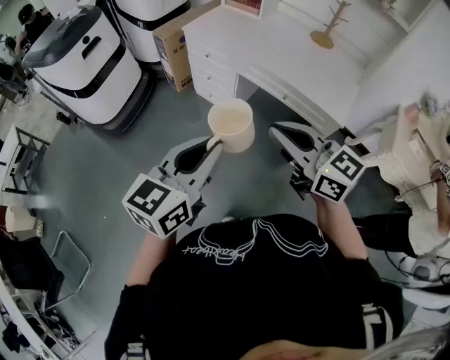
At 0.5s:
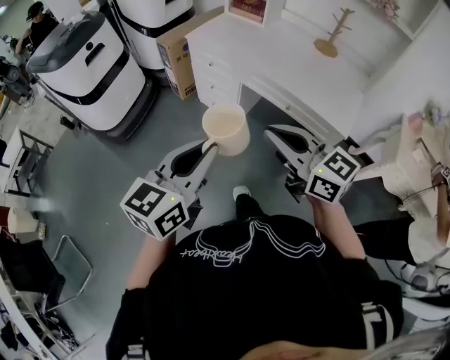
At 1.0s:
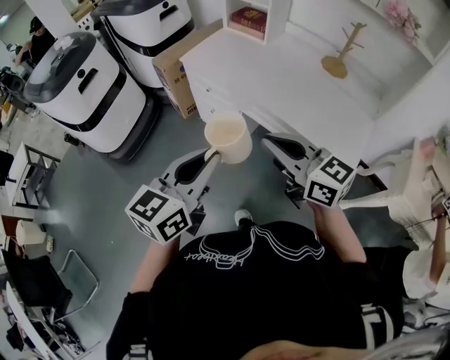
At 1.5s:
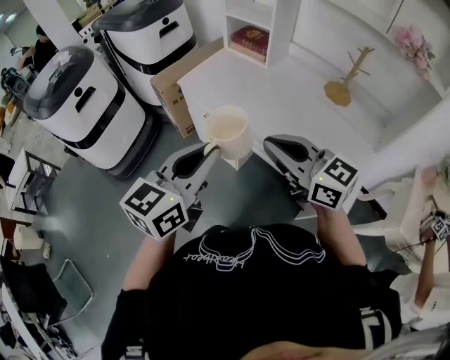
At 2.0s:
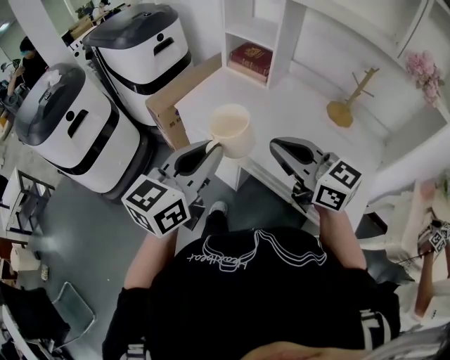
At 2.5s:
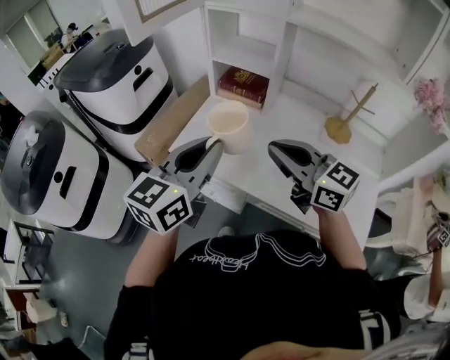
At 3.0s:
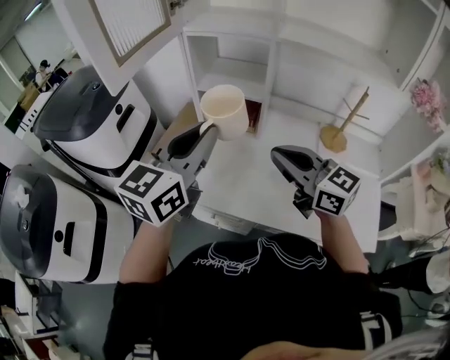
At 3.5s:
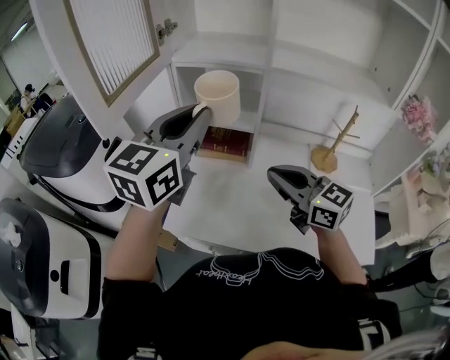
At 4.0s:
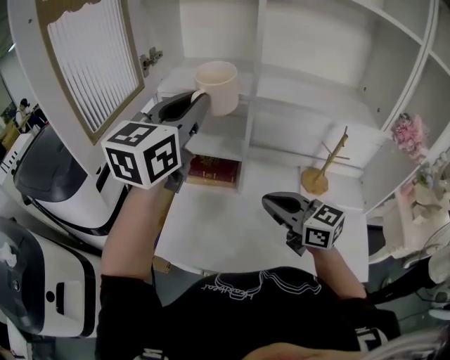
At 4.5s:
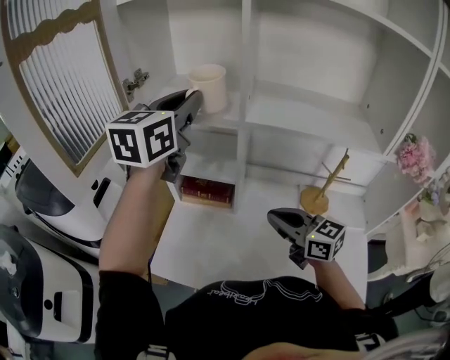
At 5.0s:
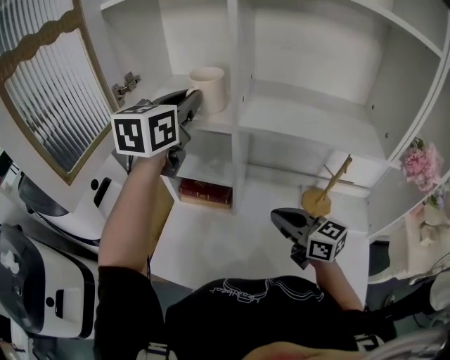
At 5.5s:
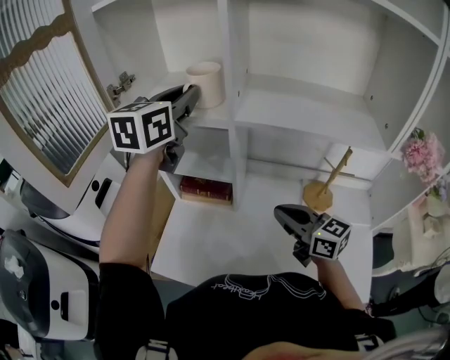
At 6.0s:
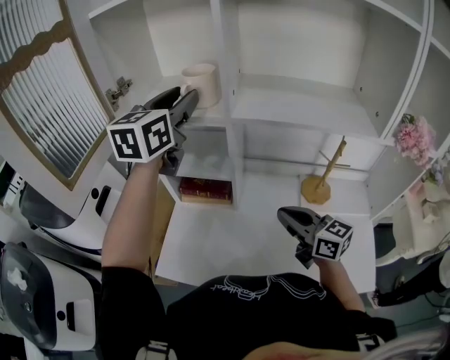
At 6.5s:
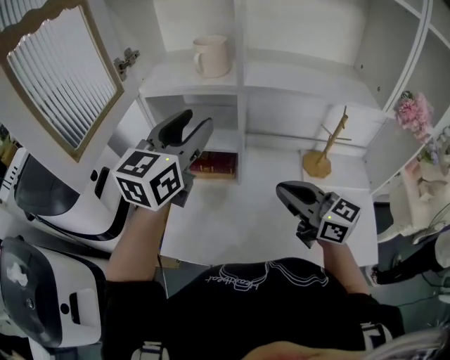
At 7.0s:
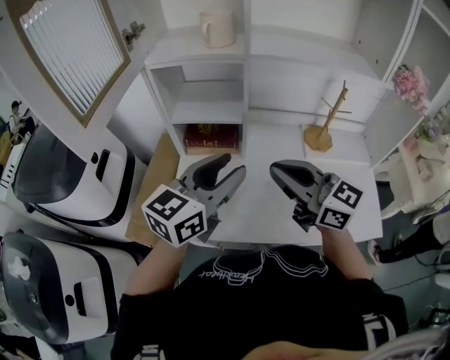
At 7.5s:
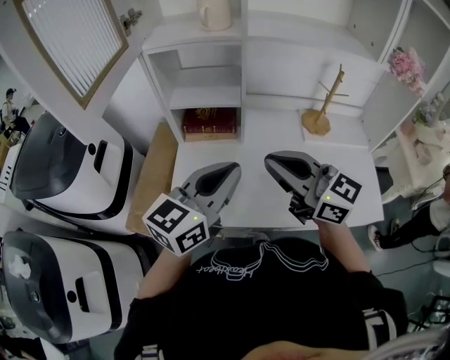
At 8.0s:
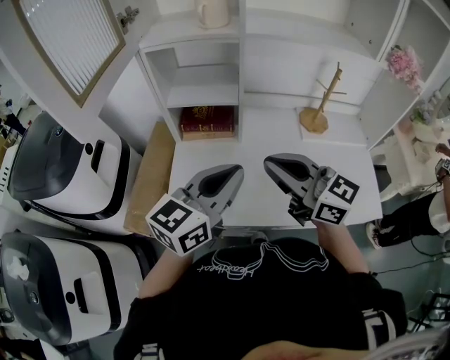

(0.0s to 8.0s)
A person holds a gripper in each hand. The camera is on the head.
0.0s - 2.0s: Both grippers travel together forward, approximately 40 cm.
2.0s - 4.0s: The right gripper shifts some 30 cm forward, and swivels roughly 30 degrees. Meanwhile the left gripper shifts approximately 50 cm forward and upward, and changes its angle by roughly 20 degrees.
4.0s - 6.0s: The left gripper is displaced forward and to the right by about 15 cm, and opens. Meanwhile the right gripper travels to the right by some 10 cm.
6.0s - 8.0s: The right gripper goes about 20 cm to the left and backward. Meanwhile the left gripper moves backward and downward, about 35 cm, swivels roughly 30 degrees, and closes up.

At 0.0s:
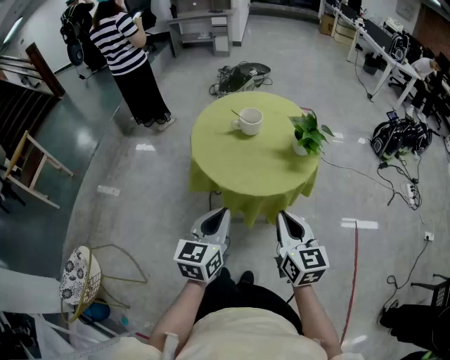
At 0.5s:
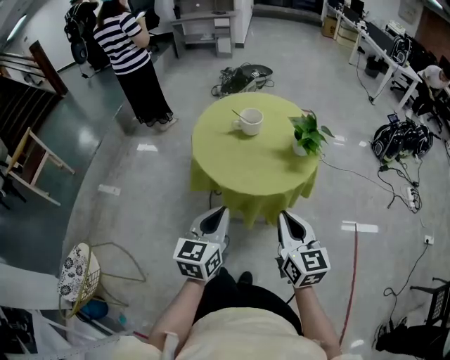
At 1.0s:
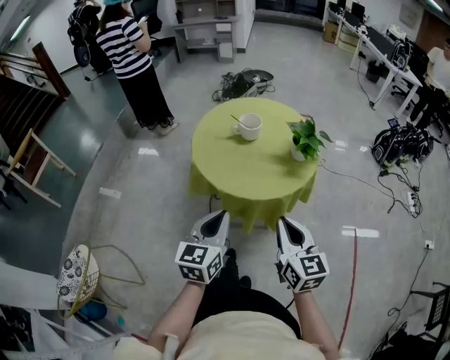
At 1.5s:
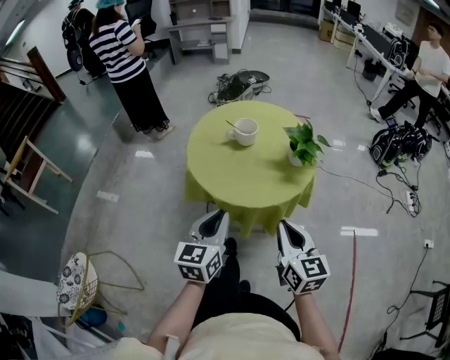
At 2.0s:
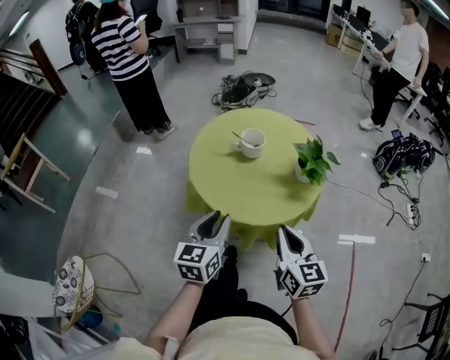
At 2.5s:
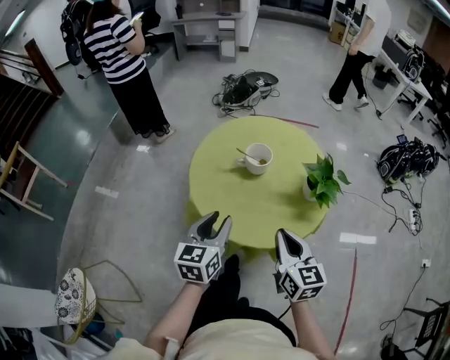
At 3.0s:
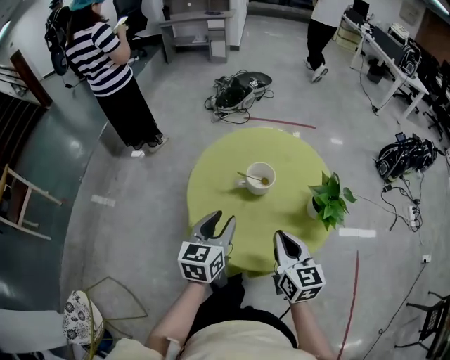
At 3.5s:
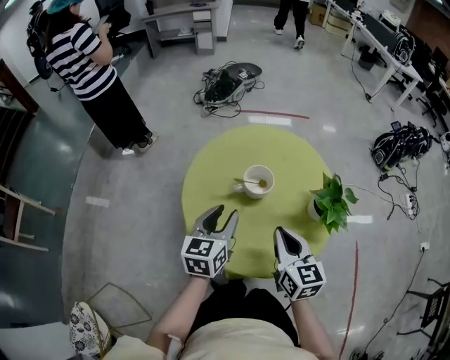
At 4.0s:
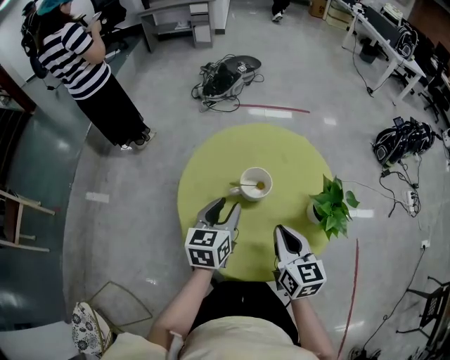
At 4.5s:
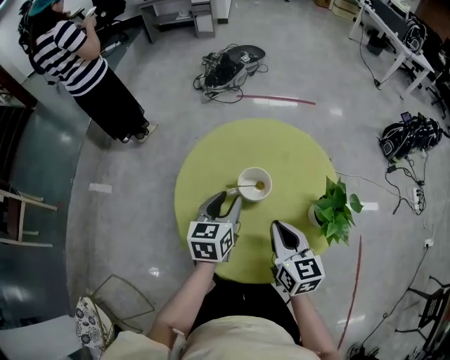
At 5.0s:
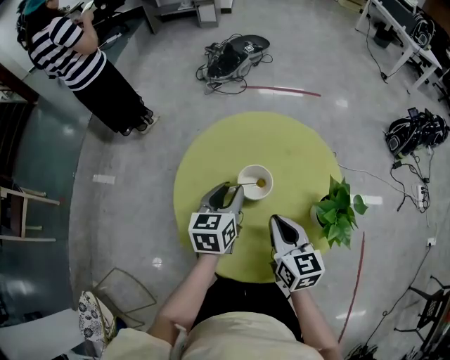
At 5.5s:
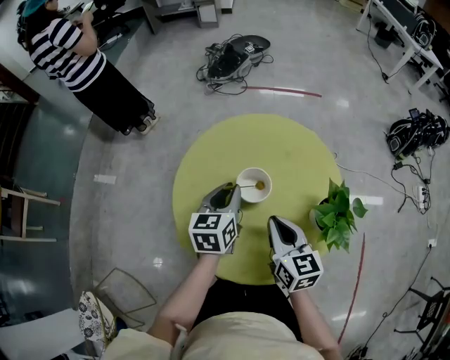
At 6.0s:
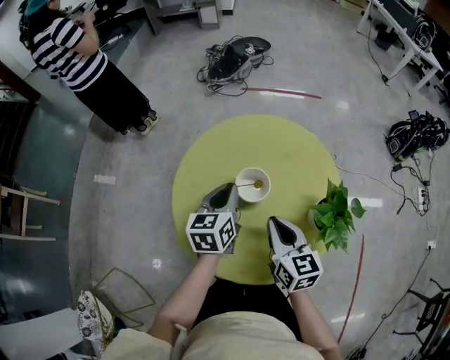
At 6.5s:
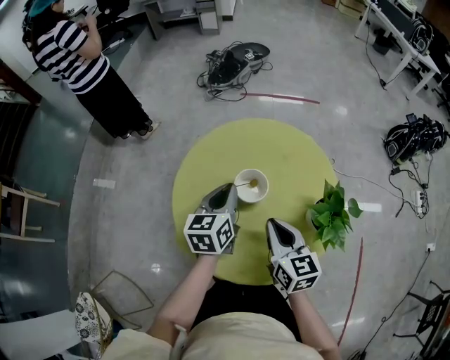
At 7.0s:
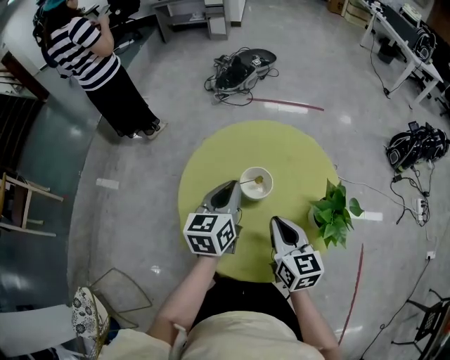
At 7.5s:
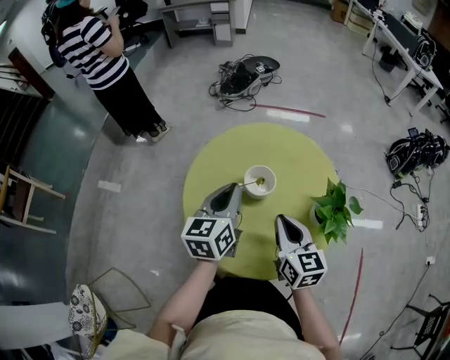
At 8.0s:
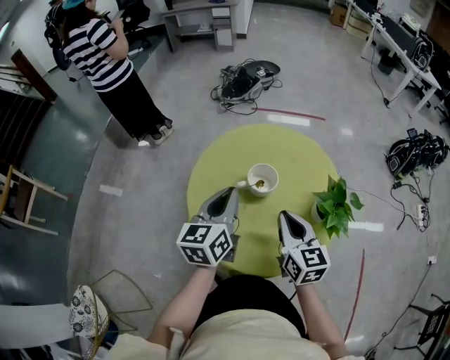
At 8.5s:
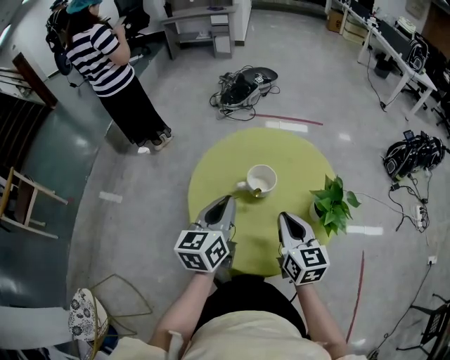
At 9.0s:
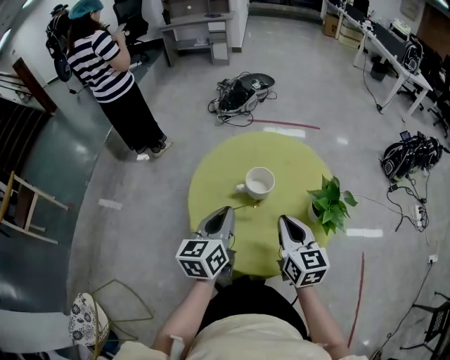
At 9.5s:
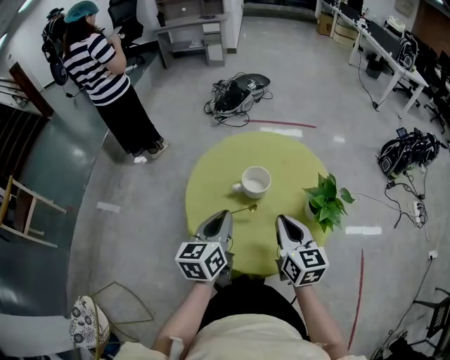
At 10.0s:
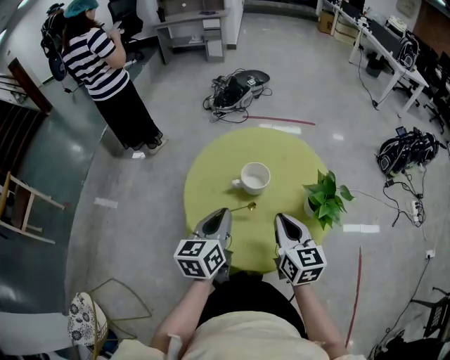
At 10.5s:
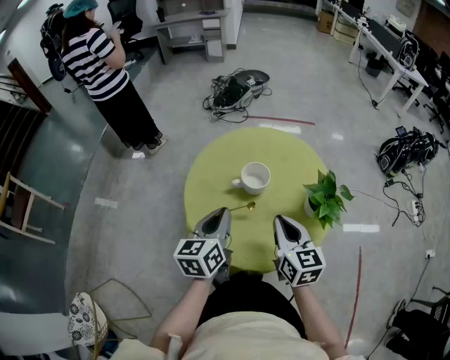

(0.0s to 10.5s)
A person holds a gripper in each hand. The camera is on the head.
0.0s - 2.0s: Both grippers travel together forward, some 10 cm. The left gripper opens its fingers.
2.0s - 4.0s: The grippers both shift forward by about 25 cm.
4.0s - 6.5s: The left gripper heads forward, covering roughly 5 cm, and closes up.
6.5s - 8.5s: The left gripper moves backward and upward, some 15 cm, while the right gripper shifts by about 5 cm.
8.5s - 10.5s: The left gripper changes place by about 5 cm.

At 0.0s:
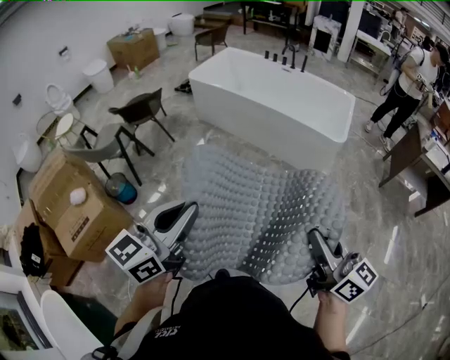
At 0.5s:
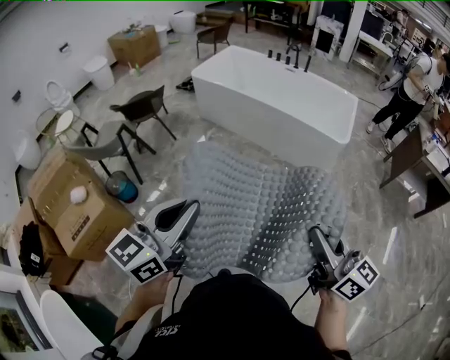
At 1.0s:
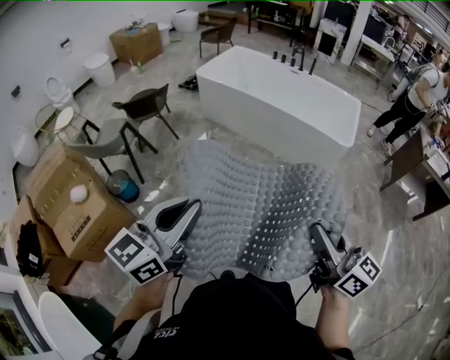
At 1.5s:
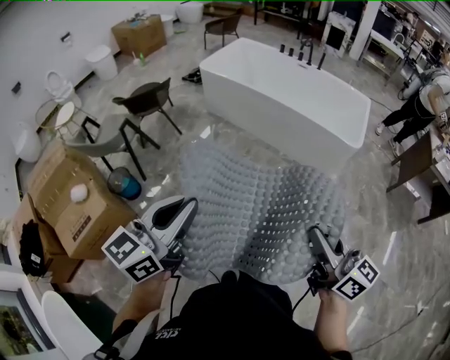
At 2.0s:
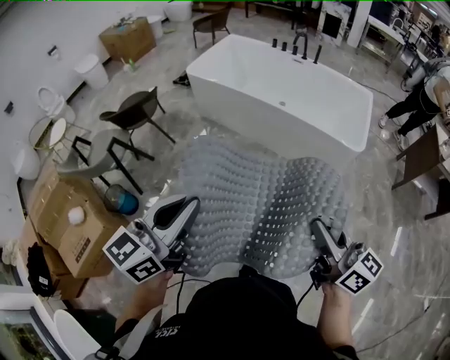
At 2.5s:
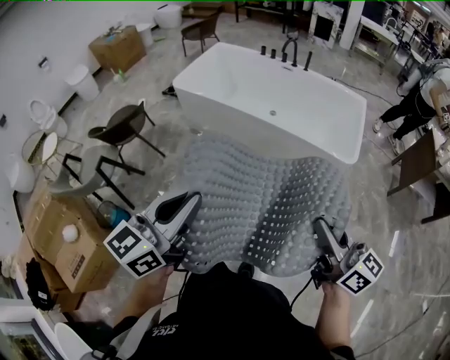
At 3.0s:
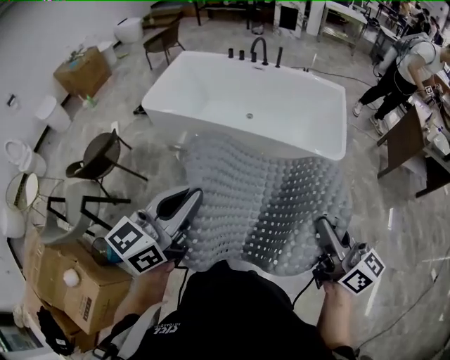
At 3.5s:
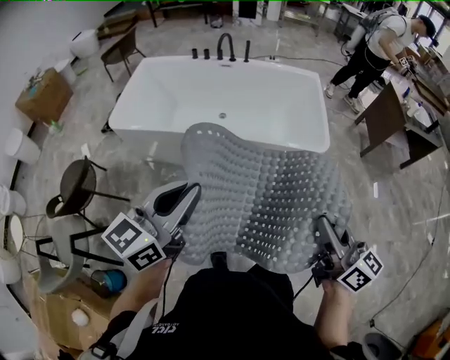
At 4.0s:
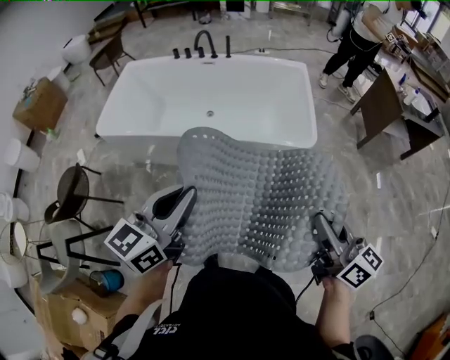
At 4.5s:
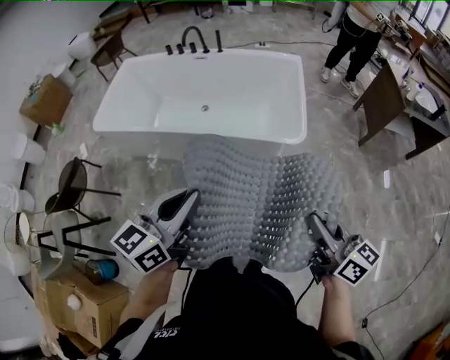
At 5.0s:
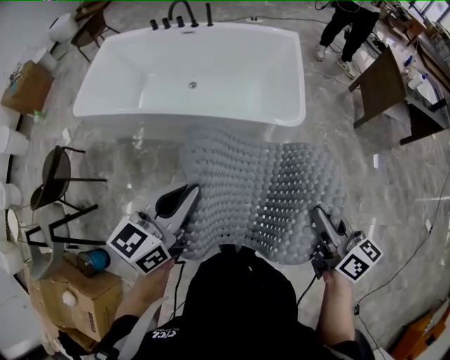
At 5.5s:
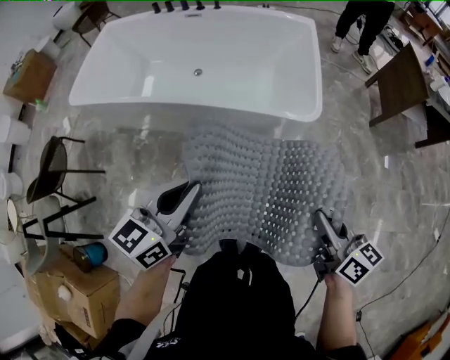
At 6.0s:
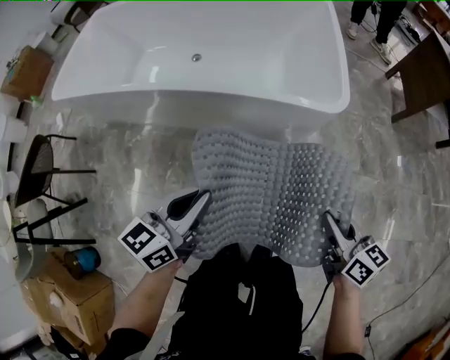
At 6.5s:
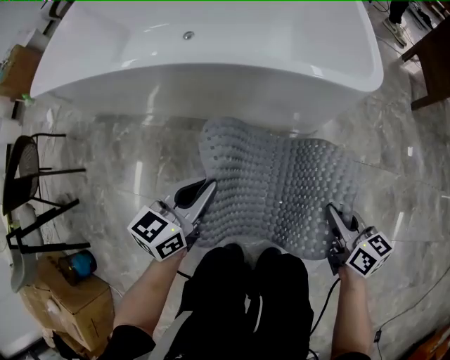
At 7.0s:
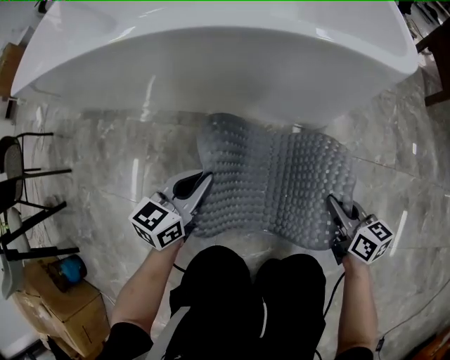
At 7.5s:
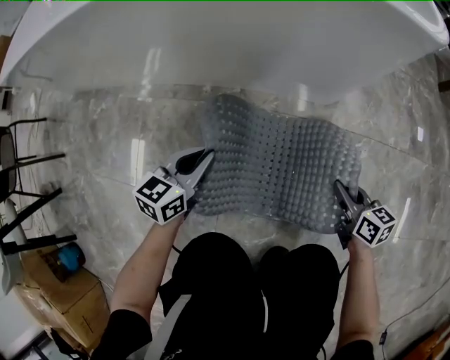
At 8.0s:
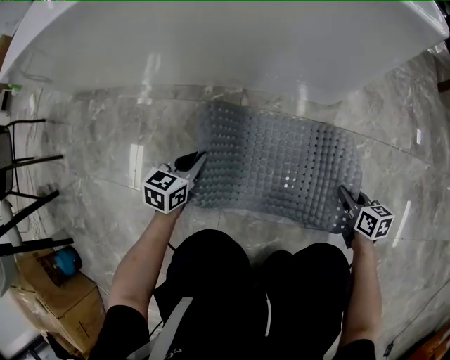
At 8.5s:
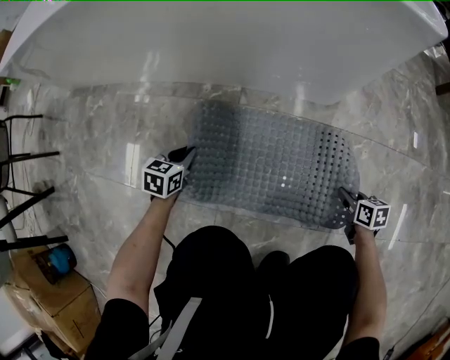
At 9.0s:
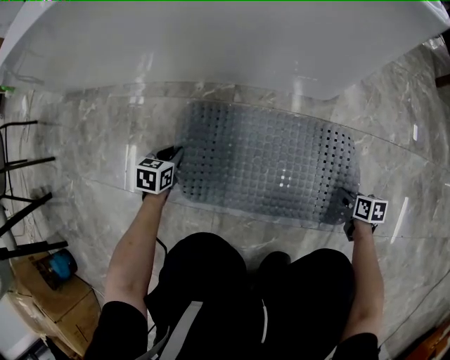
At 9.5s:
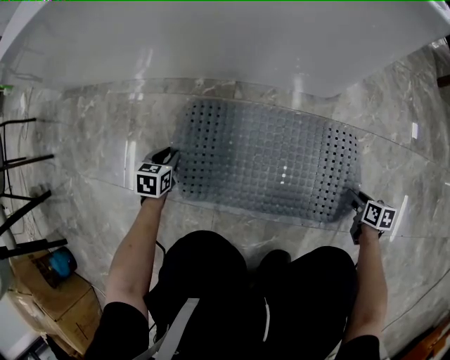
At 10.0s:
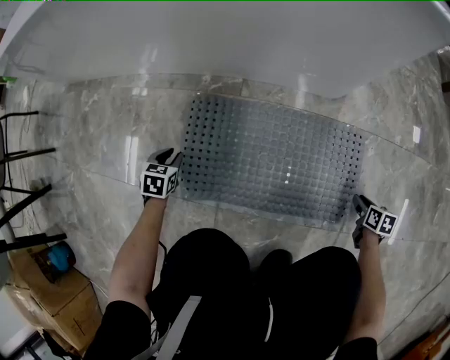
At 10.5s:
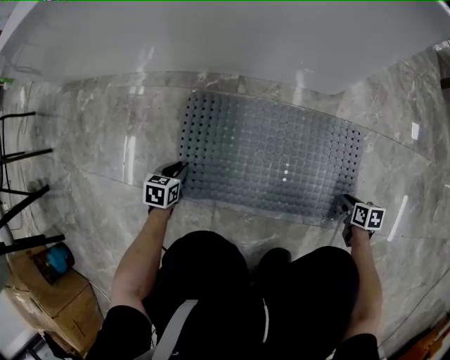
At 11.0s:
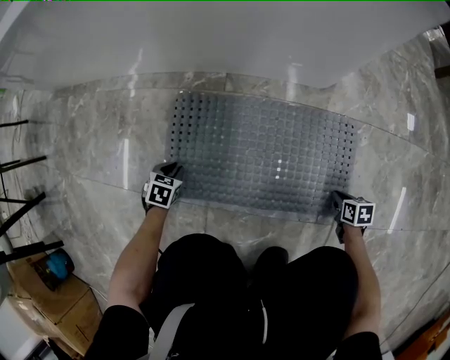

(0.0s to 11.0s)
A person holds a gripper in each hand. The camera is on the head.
0.0s - 2.0s: Both grippers move forward, about 20 cm.
2.0s - 3.5s: The left gripper moves about 35 cm, and rotates some 20 degrees. The right gripper moves approximately 25 cm, and swivels approximately 30 degrees.
3.5s - 5.5s: The left gripper is displaced to the right and downward by roughly 30 cm, while the right gripper goes approximately 35 cm to the right, downward and forward.
5.5s - 7.5s: The two grippers go about 70 cm downward.
7.5s - 9.0s: The left gripper goes roughly 25 cm downward and to the left, and turns by about 30 degrees. Meanwhile the right gripper goes about 20 cm downward and to the right, and rotates roughly 30 degrees.
9.0s - 11.0s: The right gripper heads backward, covering about 5 cm, and closes its fingers. Meanwhile the left gripper shifts approximately 10 cm backward and downward.
